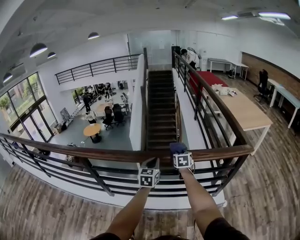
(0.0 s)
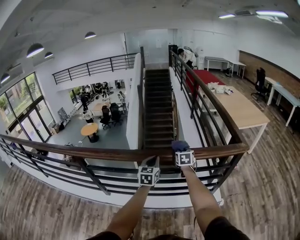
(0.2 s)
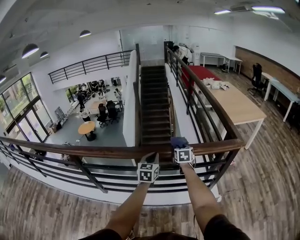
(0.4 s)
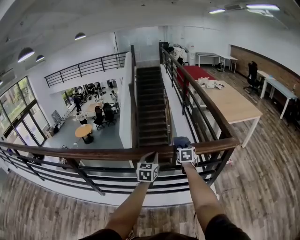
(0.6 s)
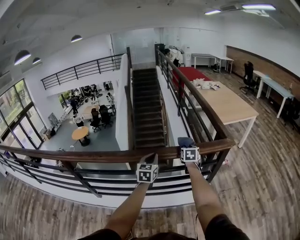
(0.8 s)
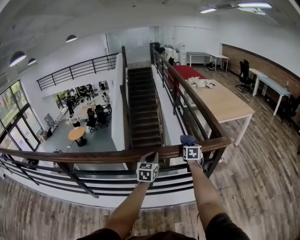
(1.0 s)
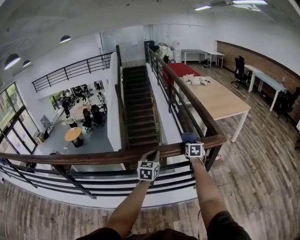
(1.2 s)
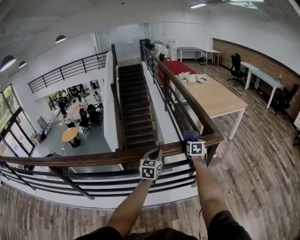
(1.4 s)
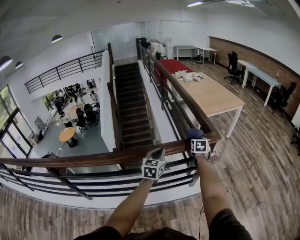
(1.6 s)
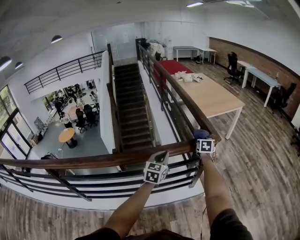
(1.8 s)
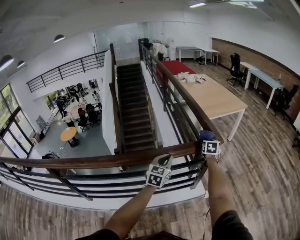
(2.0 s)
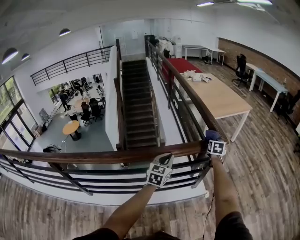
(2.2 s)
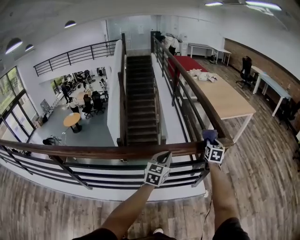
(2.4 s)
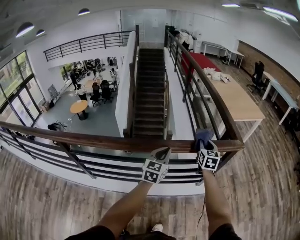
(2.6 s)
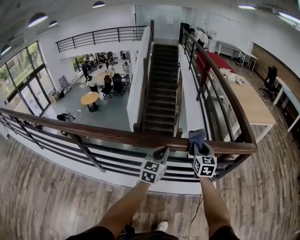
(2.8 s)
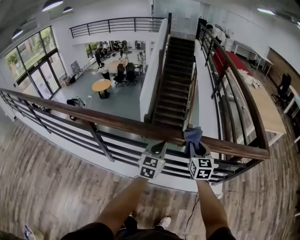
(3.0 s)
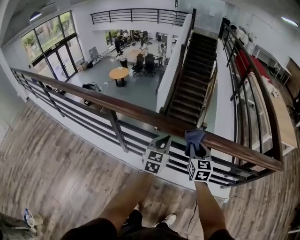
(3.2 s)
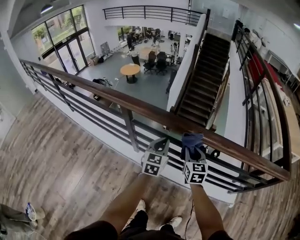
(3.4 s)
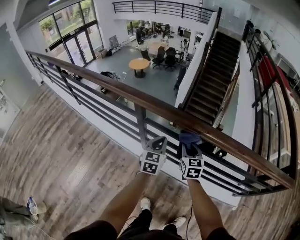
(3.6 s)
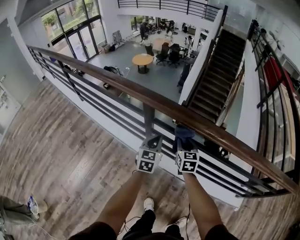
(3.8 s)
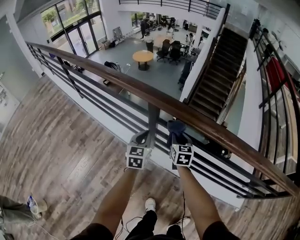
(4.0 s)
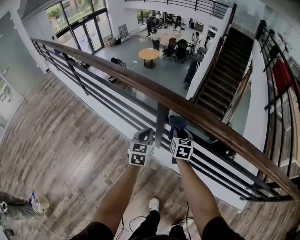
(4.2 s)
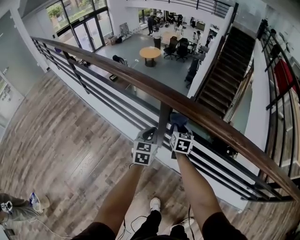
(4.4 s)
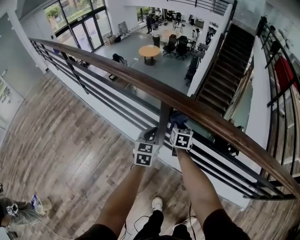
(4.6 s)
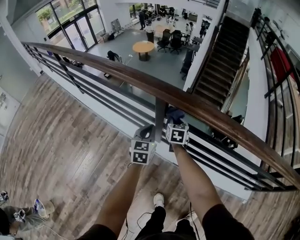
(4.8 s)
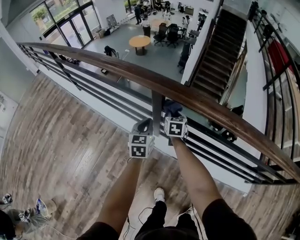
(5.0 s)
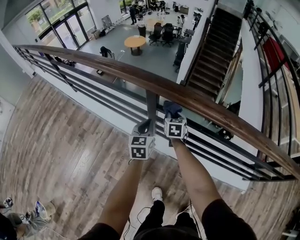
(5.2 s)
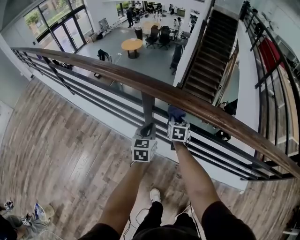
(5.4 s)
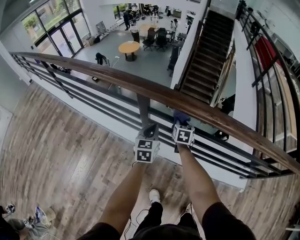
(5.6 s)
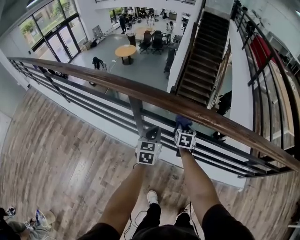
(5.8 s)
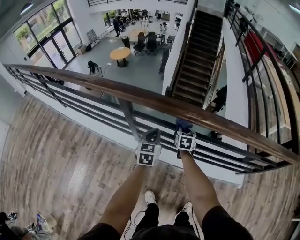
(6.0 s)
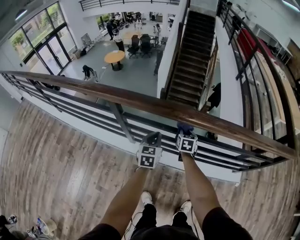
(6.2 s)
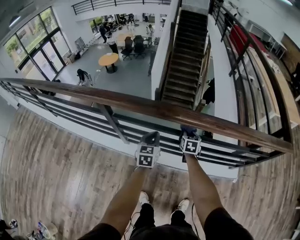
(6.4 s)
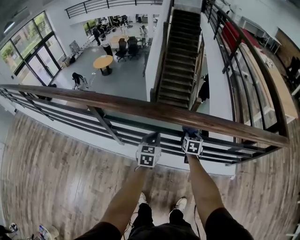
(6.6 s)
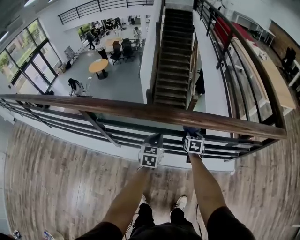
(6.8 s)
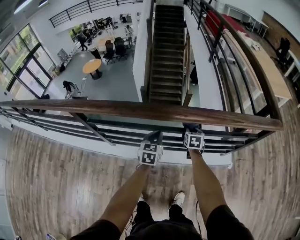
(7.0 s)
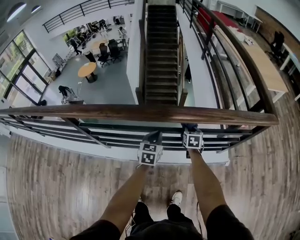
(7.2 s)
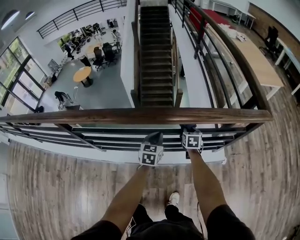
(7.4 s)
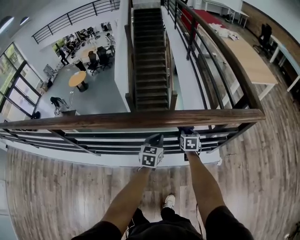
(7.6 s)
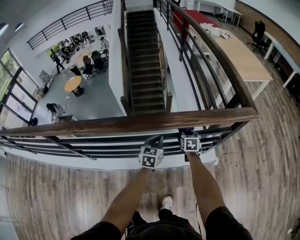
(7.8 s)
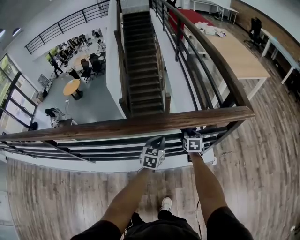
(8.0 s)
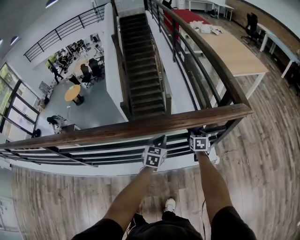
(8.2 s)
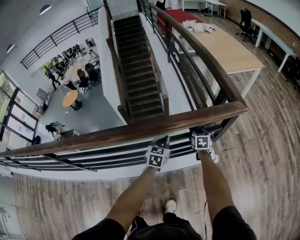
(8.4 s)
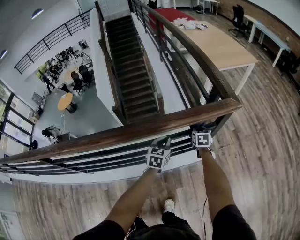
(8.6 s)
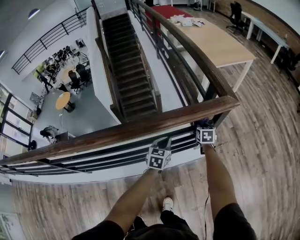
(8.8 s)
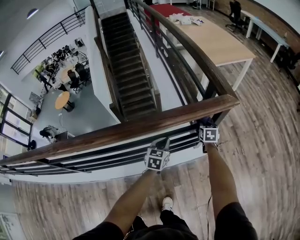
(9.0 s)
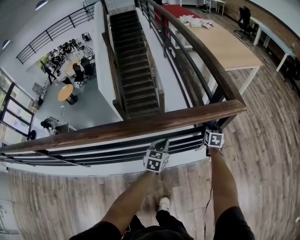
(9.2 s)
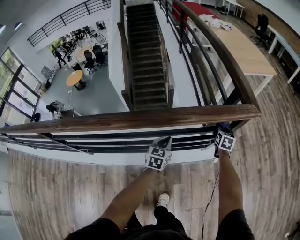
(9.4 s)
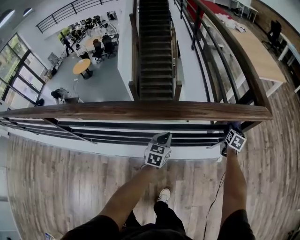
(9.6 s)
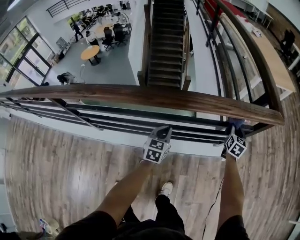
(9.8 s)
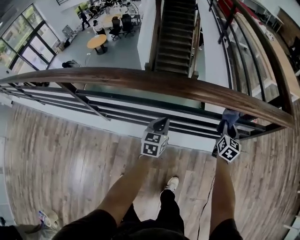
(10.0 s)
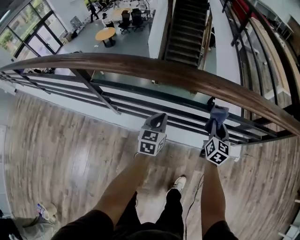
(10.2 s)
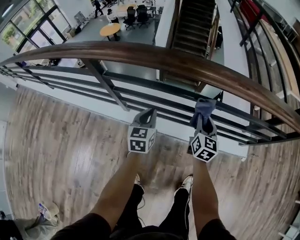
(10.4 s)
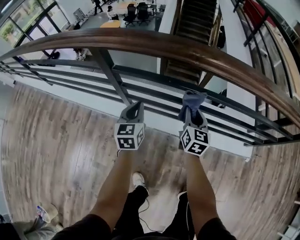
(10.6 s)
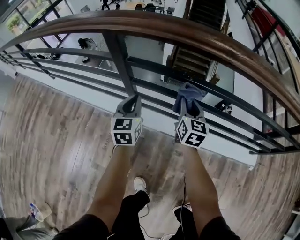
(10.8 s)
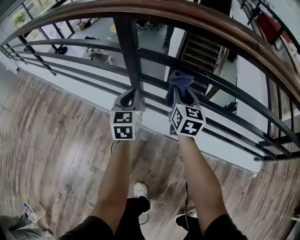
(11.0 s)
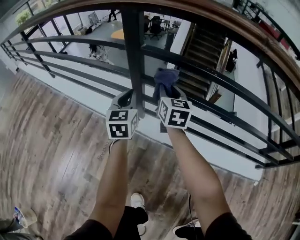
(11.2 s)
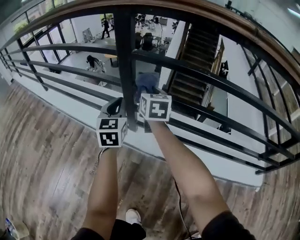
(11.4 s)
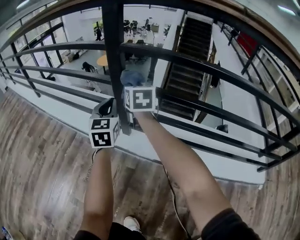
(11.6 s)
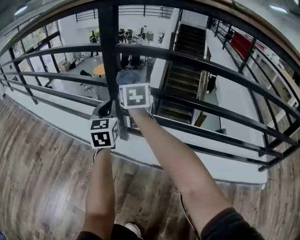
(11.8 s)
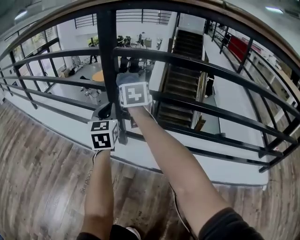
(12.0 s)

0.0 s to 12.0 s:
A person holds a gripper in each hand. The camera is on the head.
0.0 to 1.6 s: Both grippers travel together to the right, roughly 35 cm. The right gripper turns by roughly 20 degrees.
1.6 to 3.0 s: The pair of grippers is taken roughly 50 cm. The right gripper swivels approximately 40 degrees.
3.0 to 4.4 s: Both grippers are carried roughly 60 cm. The right gripper rotates roughly 30 degrees; the left gripper swivels some 30 degrees.
4.4 to 6.0 s: Both grippers move to the right, approximately 25 cm.
6.0 to 7.6 s: The pair of grippers is taken to the right, roughly 60 cm. The left gripper turns by approximately 20 degrees.
7.6 to 9.0 s: Both grippers move to the right, about 30 cm.
9.0 to 10.4 s: The pair of grippers is taken roughly 70 cm. The right gripper rotates about 30 degrees; the left gripper rotates approximately 40 degrees.
10.4 to 12.0 s: The left gripper goes about 40 cm to the left and downward, and changes its angle by some 30 degrees. The right gripper travels to the left, downward and forward by roughly 50 cm, and turns by about 30 degrees.

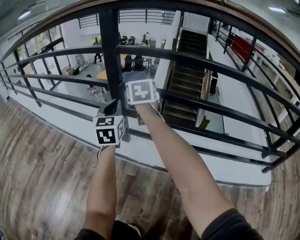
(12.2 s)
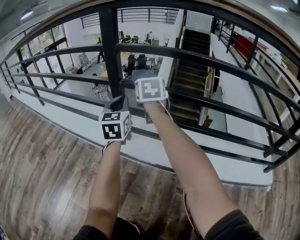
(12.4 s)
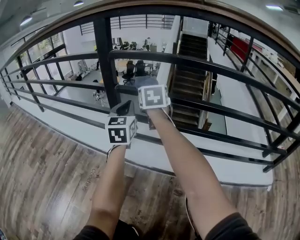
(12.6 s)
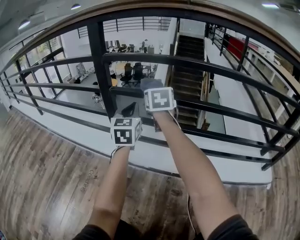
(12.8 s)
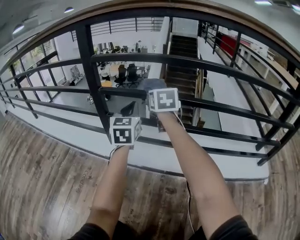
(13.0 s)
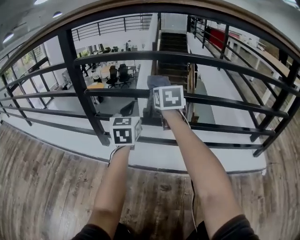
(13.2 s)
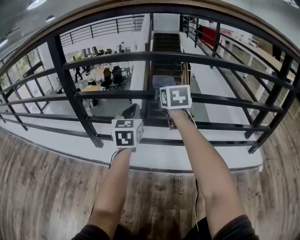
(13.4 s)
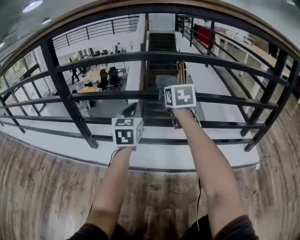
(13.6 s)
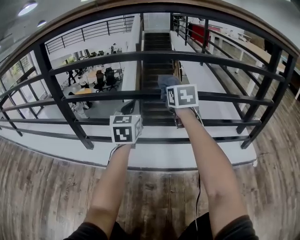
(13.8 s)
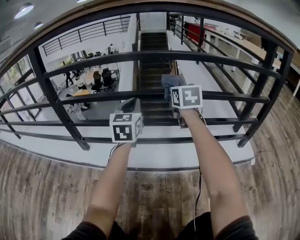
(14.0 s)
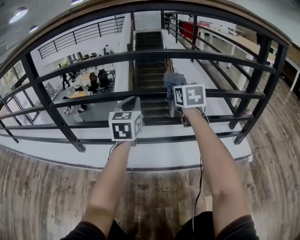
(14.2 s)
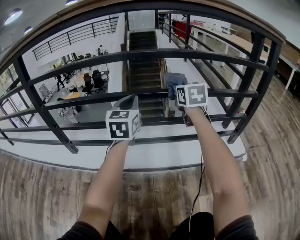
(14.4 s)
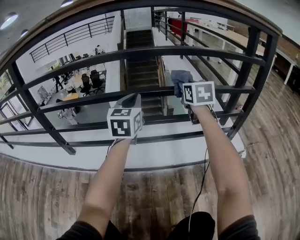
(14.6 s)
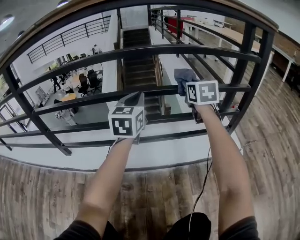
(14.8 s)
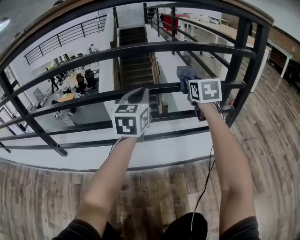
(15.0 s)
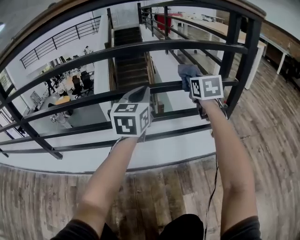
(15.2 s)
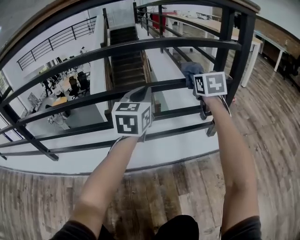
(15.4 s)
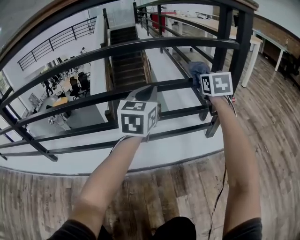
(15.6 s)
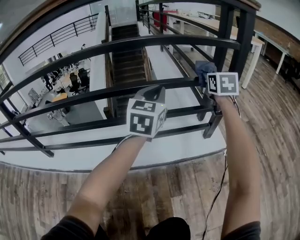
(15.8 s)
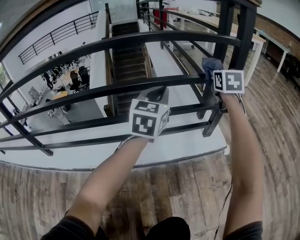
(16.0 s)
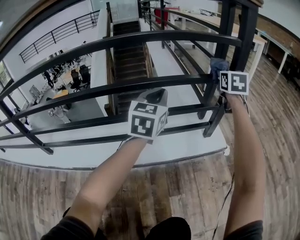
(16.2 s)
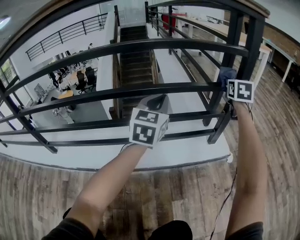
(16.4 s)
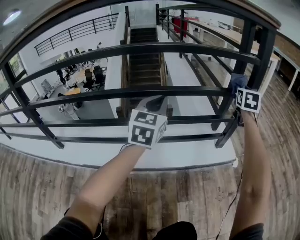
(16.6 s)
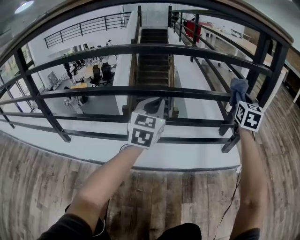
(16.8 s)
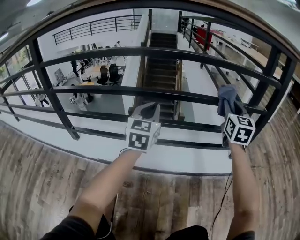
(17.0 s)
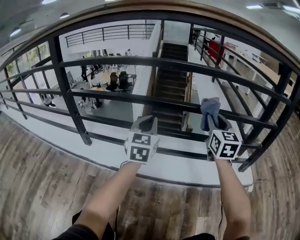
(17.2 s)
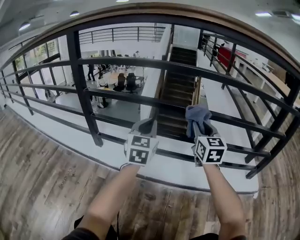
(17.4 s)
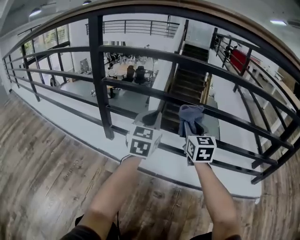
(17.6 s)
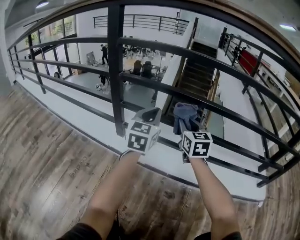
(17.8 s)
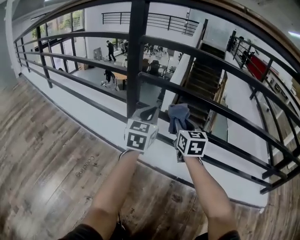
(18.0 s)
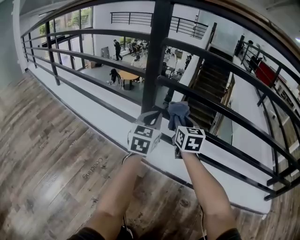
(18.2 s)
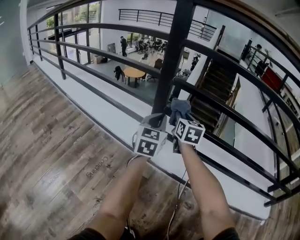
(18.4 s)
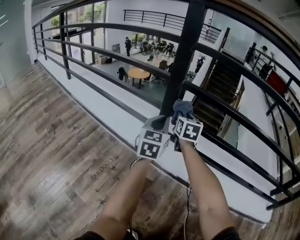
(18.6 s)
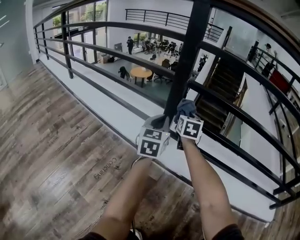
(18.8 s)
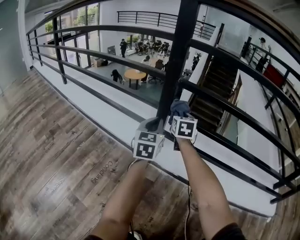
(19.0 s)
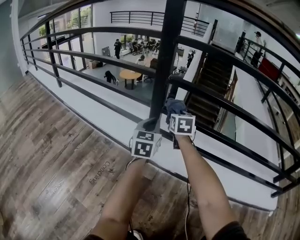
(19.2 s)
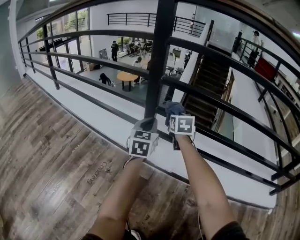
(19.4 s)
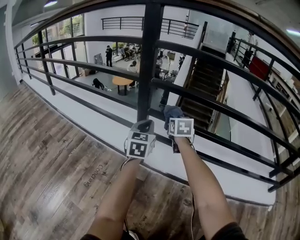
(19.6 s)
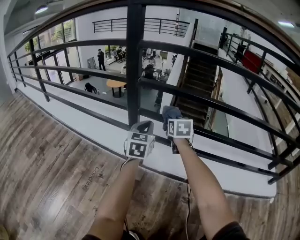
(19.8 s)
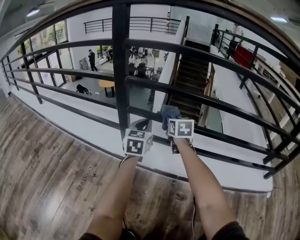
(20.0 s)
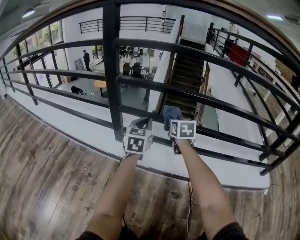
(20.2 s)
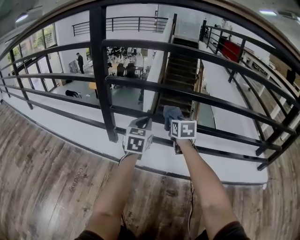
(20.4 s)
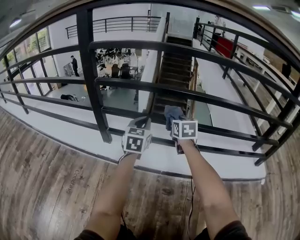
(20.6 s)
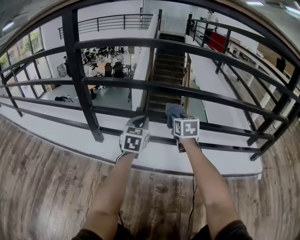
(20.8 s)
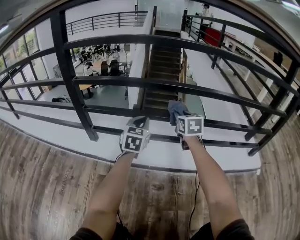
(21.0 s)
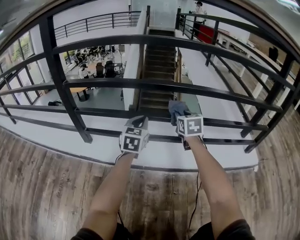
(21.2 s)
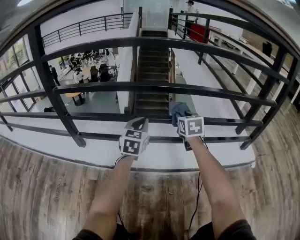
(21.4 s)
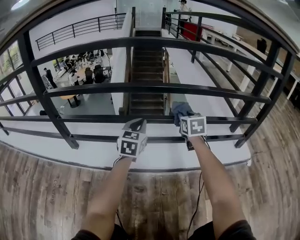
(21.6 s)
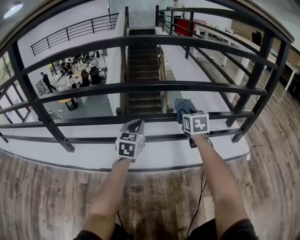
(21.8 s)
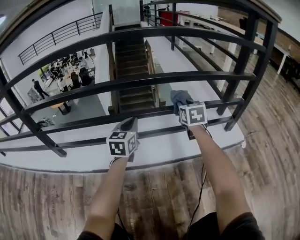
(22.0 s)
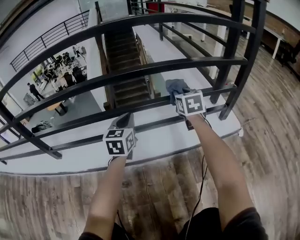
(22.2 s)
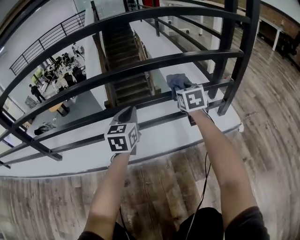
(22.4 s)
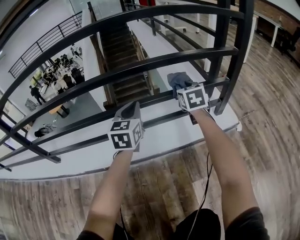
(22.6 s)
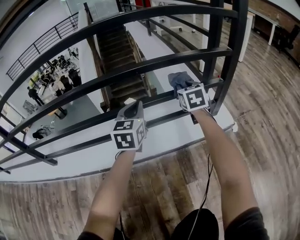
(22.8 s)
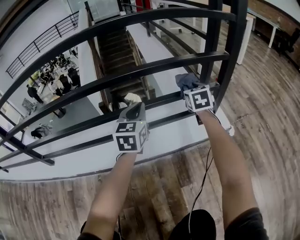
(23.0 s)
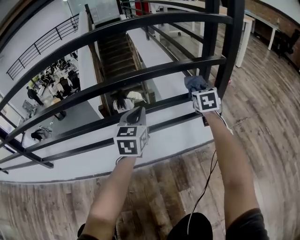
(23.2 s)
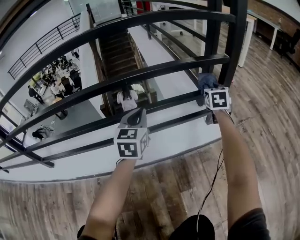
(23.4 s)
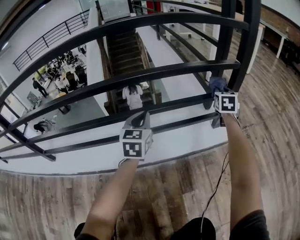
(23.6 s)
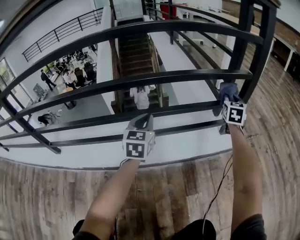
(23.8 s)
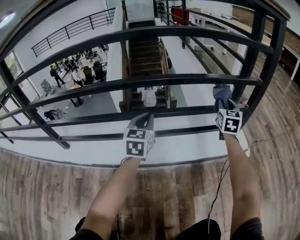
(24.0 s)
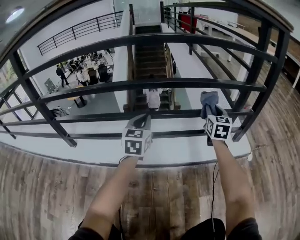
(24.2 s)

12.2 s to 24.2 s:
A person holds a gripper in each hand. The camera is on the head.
12.2 to 13.8 s: Both grippers are carried to the right, roughly 50 cm. The left gripper changes its angle by about 20 degrees.
13.8 to 15.2 s: The grippers both shift to the right by some 40 cm.
15.2 to 16.6 s: The right gripper is displaced to the right by approximately 20 cm, and turns by approximately 20 degrees. Meanwhile the left gripper goes to the right and returns, about 15 cm each way.
16.6 to 18.2 s: Both grippers are carried some 90 cm. The right gripper swivels roughly 60 degrees. Meanwhile the left gripper turns by approximately 30 degrees.
18.2 to 19.8 s: The left gripper travels to the left and back again, about 10 cm each way. Meanwhile the right gripper shifts some 5 cm downward.
19.8 to 21.2 s: Both grippers travel together to the right, roughly 35 cm.
21.2 to 22.6 s: The grippers both shift to the right by some 40 cm.
22.6 to 24.2 s: The right gripper reaches roughly 20 cm to the right, then returns. Meanwhile the left gripper heads to the left and backward, covering roughly 15 cm.
